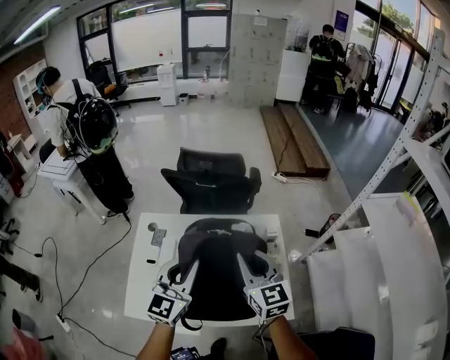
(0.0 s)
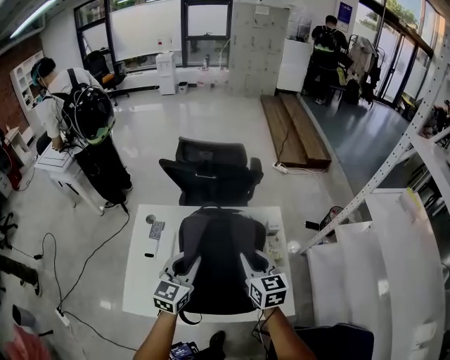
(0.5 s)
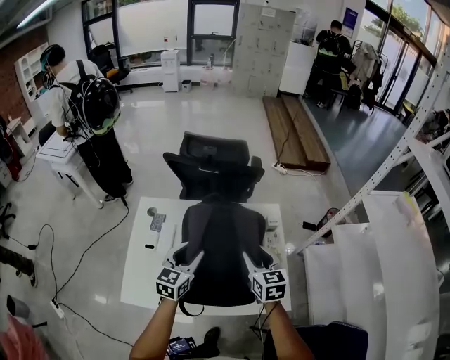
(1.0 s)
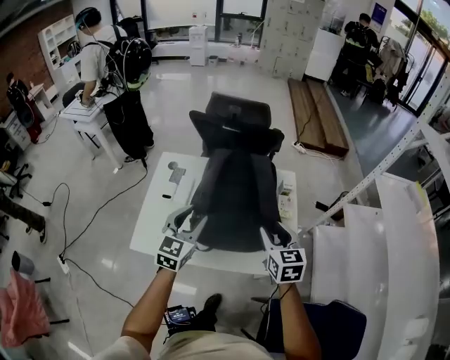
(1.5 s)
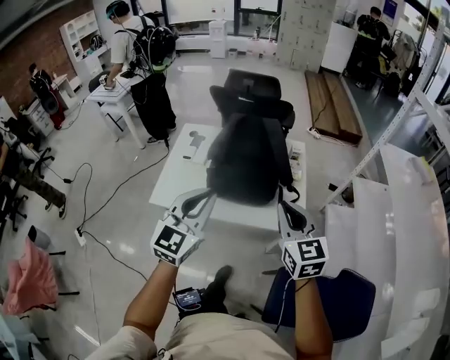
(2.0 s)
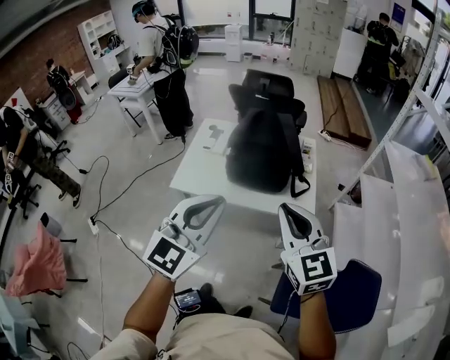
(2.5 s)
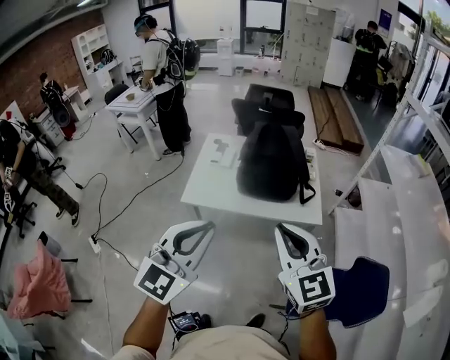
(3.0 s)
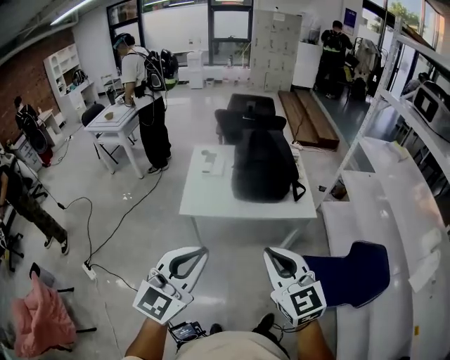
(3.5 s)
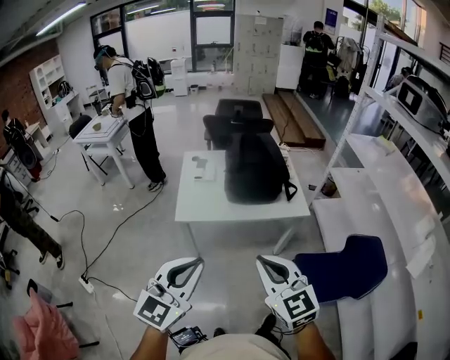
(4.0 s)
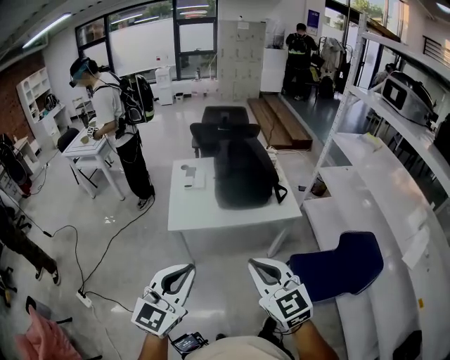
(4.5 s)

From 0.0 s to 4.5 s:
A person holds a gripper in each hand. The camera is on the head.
From 0.0 s to 2.0 s: The grippers both shift backward by some 30 cm. The left gripper opens, then closes once more, while the right gripper opens, then closes once more.
From 2.0 s to 4.5 s: Both grippers are carried backward and to the left, some 40 cm.

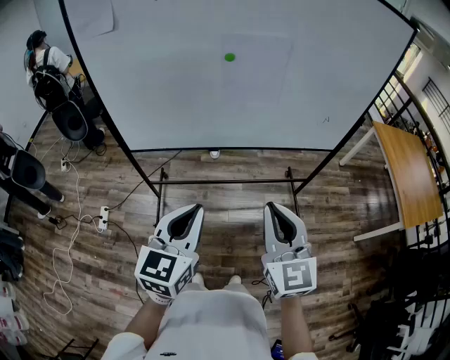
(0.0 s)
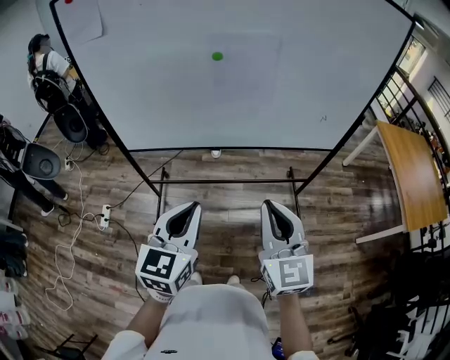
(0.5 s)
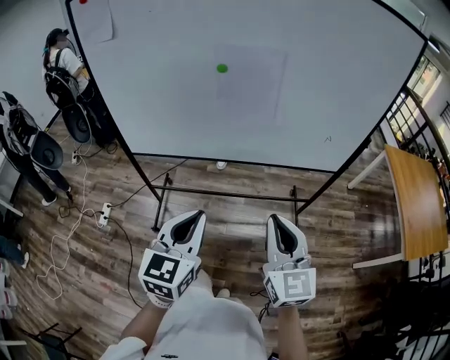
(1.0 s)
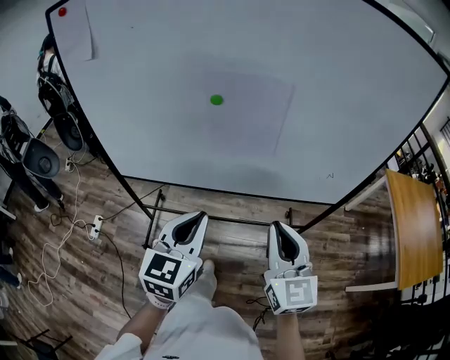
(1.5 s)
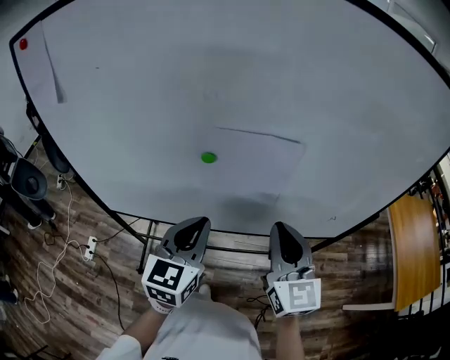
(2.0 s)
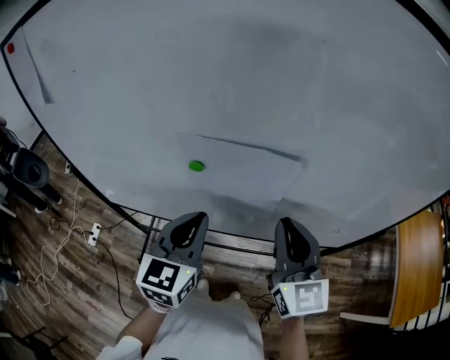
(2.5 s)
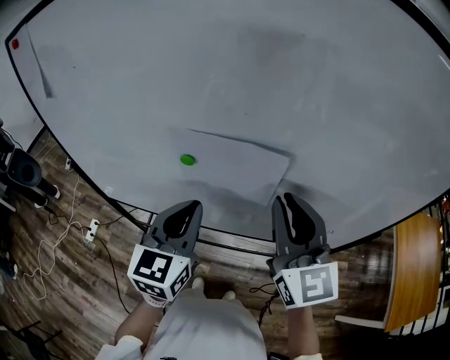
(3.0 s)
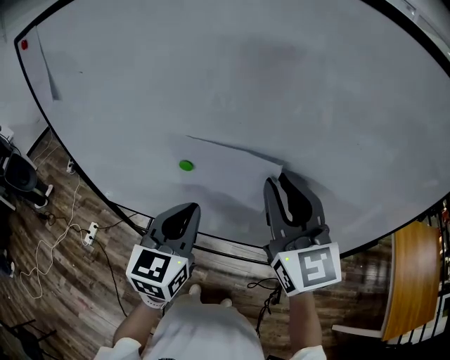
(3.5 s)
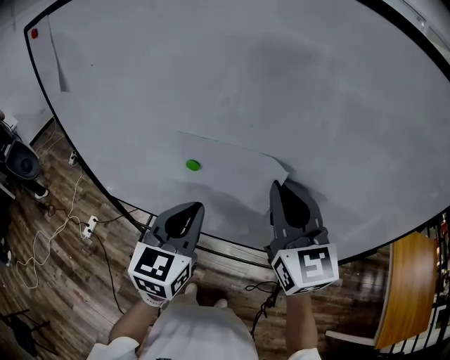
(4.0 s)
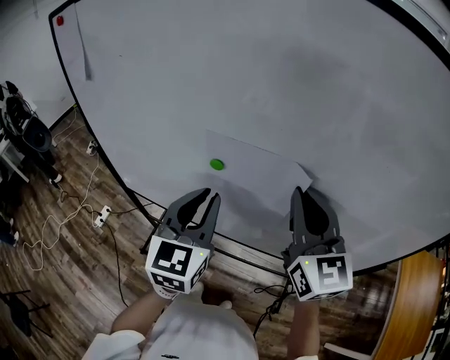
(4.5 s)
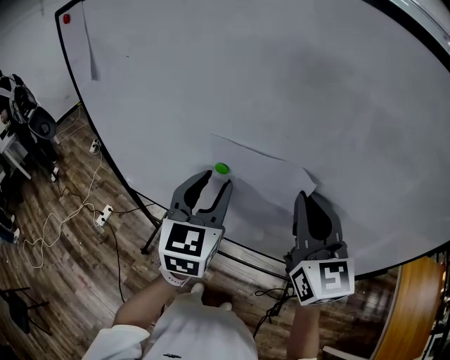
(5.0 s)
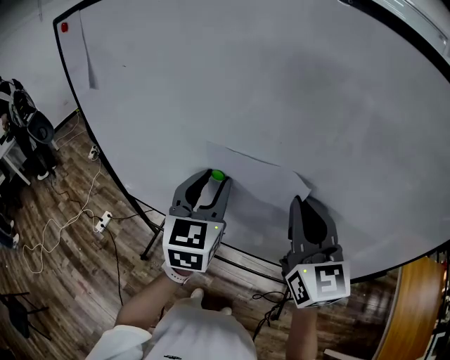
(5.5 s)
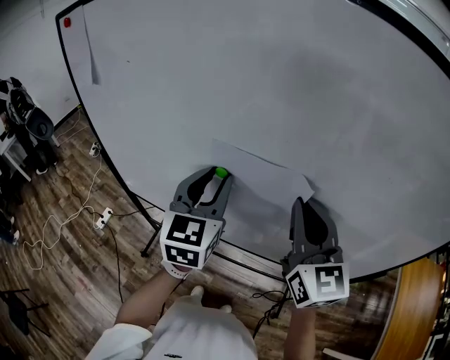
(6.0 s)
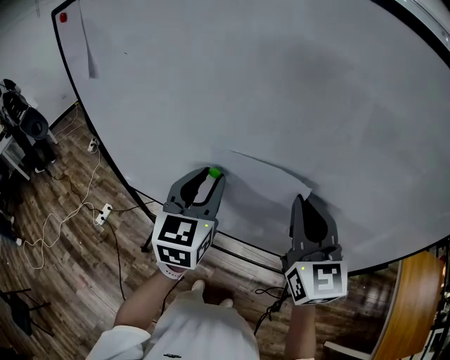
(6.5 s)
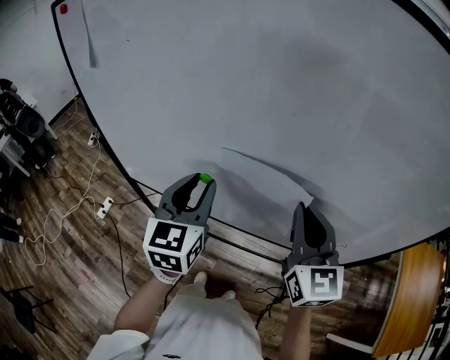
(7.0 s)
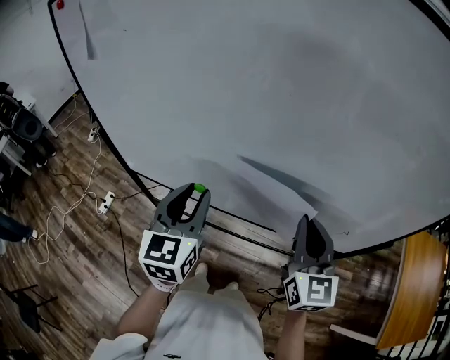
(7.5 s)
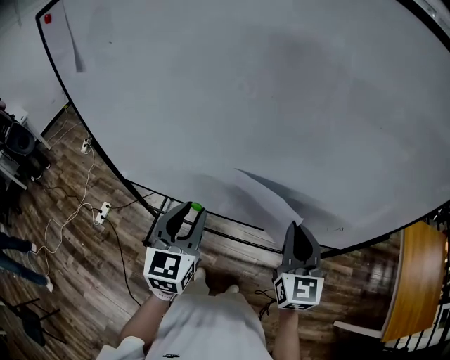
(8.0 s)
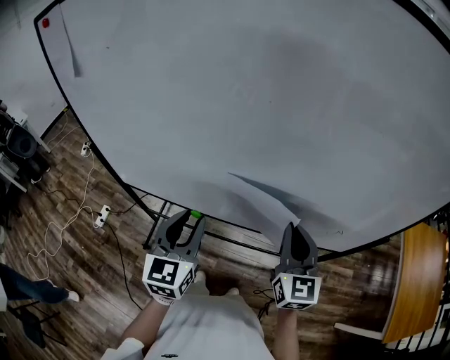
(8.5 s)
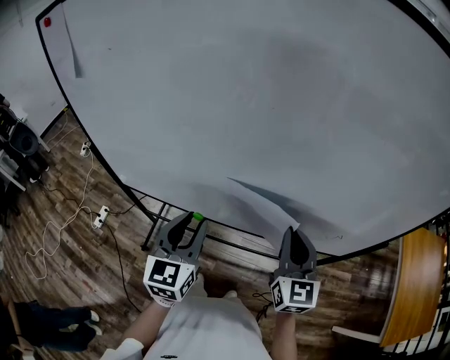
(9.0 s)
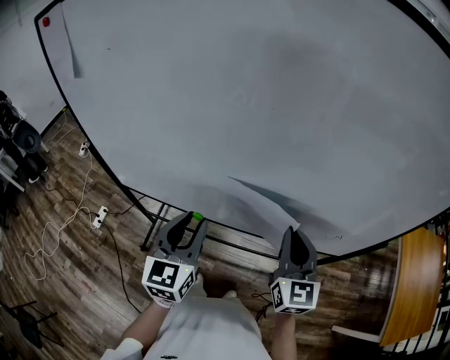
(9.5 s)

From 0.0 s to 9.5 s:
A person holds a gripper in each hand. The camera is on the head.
From 0.0 s to 2.0 s: The grippers both shift forward by approximately 30 cm.
From 2.0 s to 4.0 s: The left gripper changes place by some 5 cm. The right gripper moves upward and forward, approximately 15 cm.
From 4.0 s to 5.5 s: The left gripper travels forward by some 5 cm, and opens up.
From 5.5 s to 7.5 s: The right gripper goes about 15 cm downward and backward. Meanwhile the left gripper goes approximately 10 cm backward and downward.
From 7.5 s to 9.5 s: The grippers stay close to where they were, moving slightly.

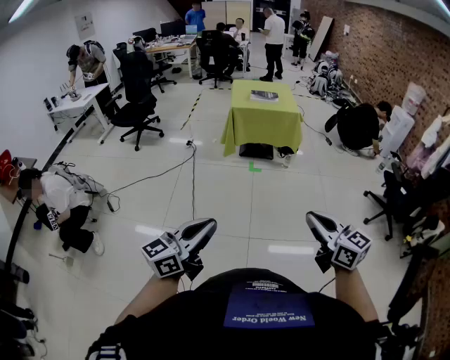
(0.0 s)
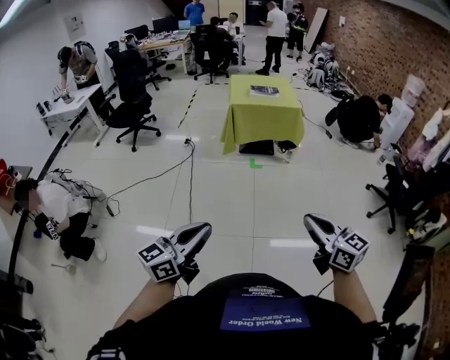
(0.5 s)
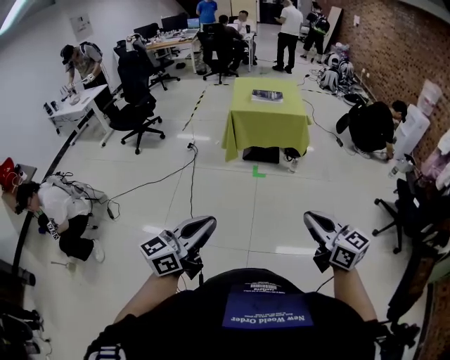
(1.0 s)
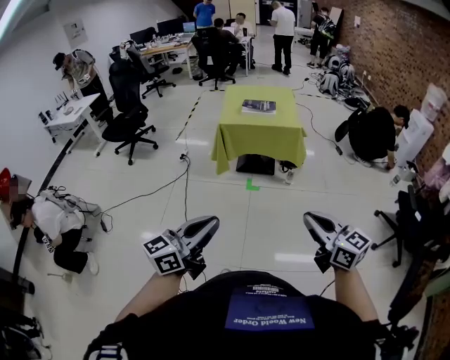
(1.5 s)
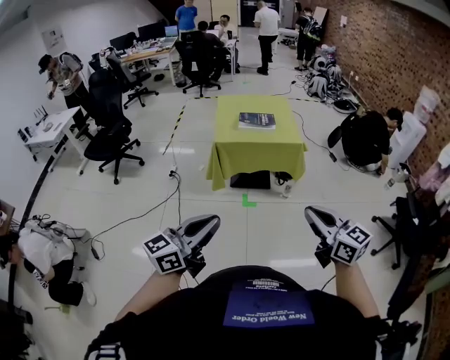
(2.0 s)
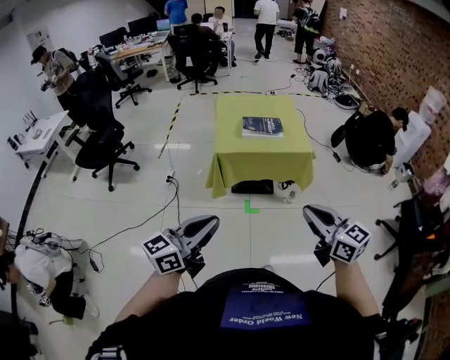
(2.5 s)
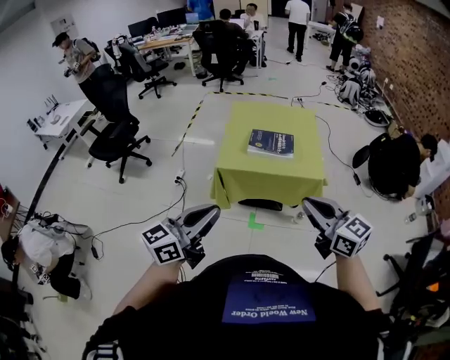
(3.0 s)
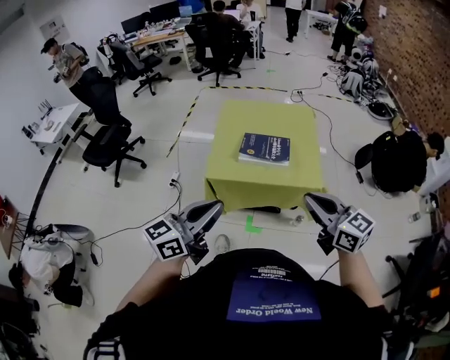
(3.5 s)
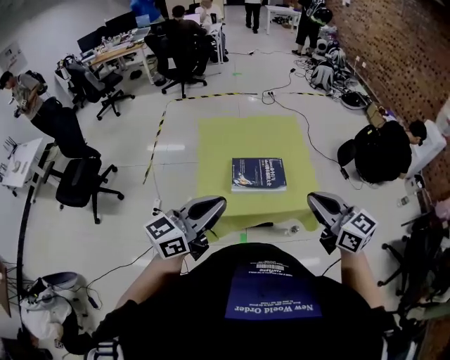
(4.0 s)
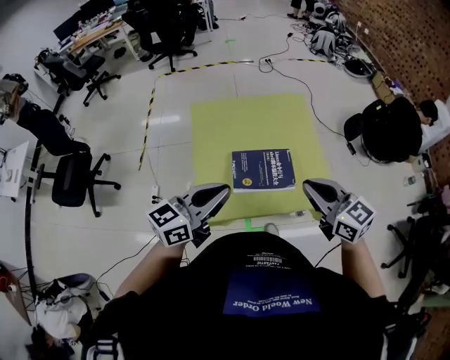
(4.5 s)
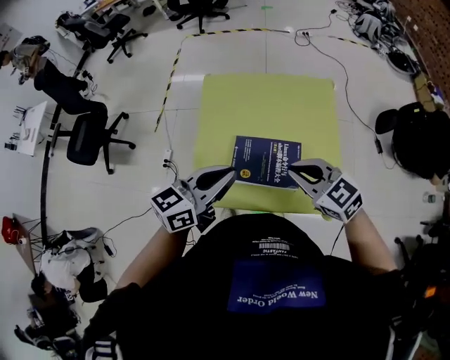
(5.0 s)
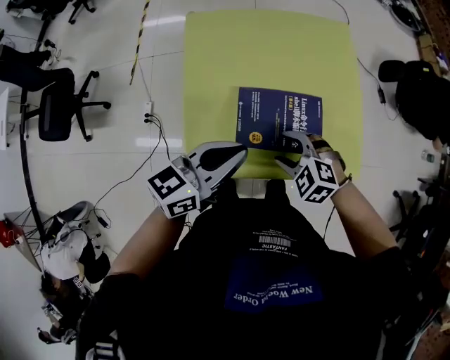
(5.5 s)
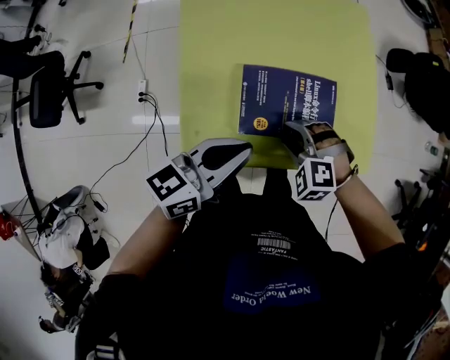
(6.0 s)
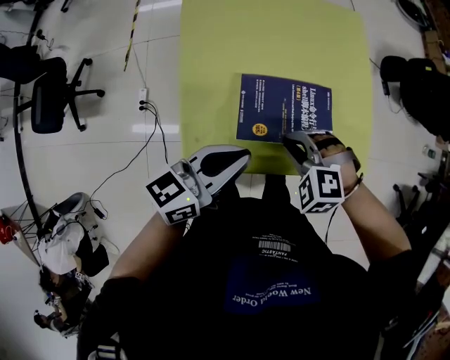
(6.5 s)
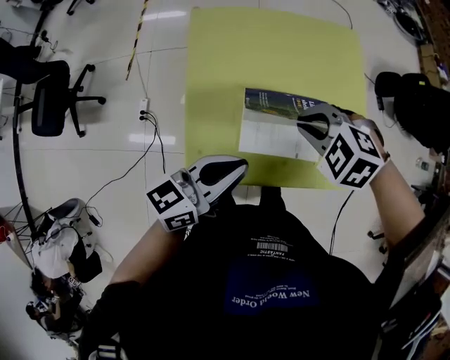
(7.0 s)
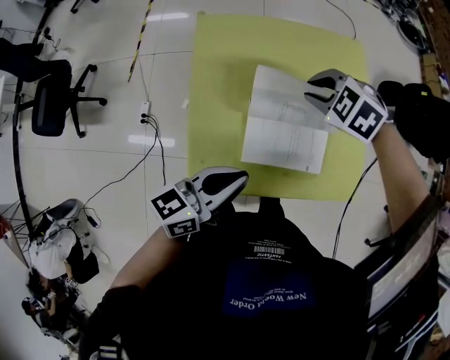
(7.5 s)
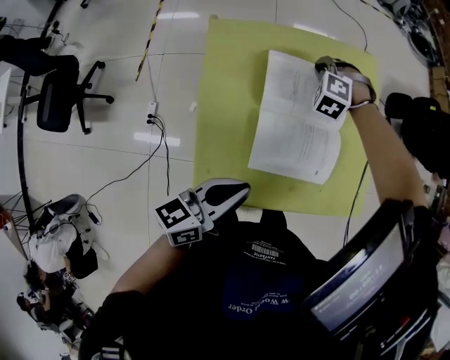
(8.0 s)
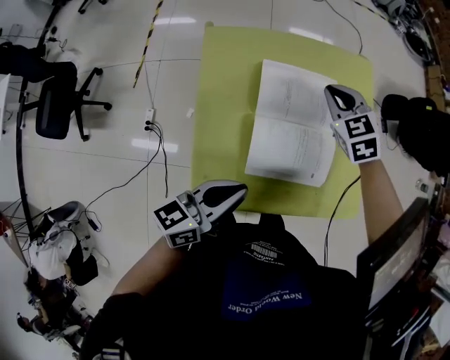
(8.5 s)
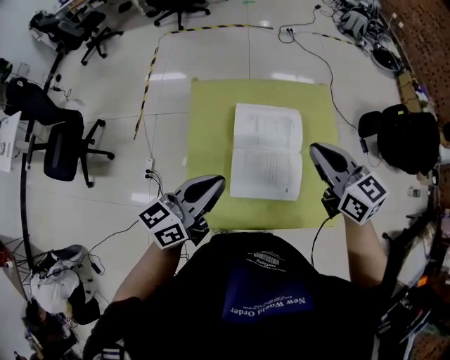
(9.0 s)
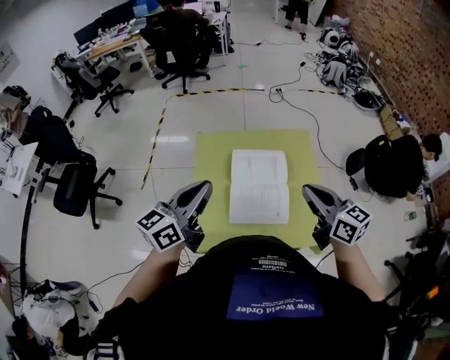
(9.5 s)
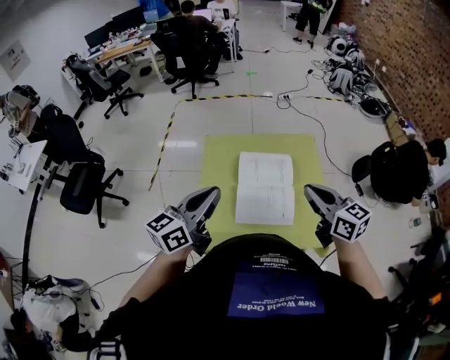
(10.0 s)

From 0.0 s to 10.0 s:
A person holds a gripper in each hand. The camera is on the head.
From 0.0 s to 2.0 s: The pair of grippers is taken forward, some 50 cm.
From 2.0 s to 4.0 s: Both grippers are carried forward, some 60 cm.
From 4.0 s to 6.0 s: The two grippers go about 30 cm downward and forward. The left gripper rotates about 30 degrees; the right gripper tilts its fingers roughly 50 degrees downward, and opens.
From 6.0 s to 8.0 s: The right gripper moves approximately 15 cm upward and comes back, turns by roughly 20 degrees, and closes.
From 8.0 s to 10.0 s: The right gripper changes place by approximately 40 cm, and tilts its fingers approximately 50 degrees upward. Meanwhile the left gripper moves upward, roughly 20 cm, and turns by some 30 degrees.

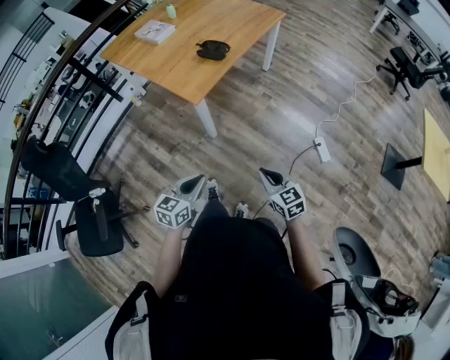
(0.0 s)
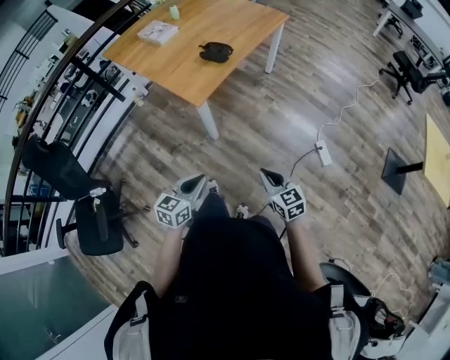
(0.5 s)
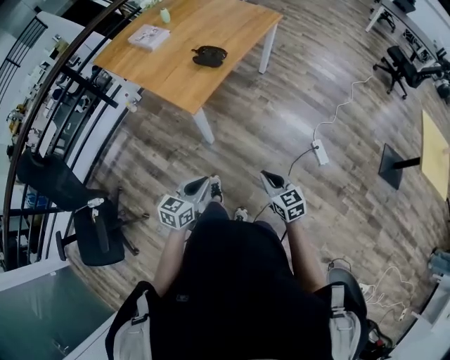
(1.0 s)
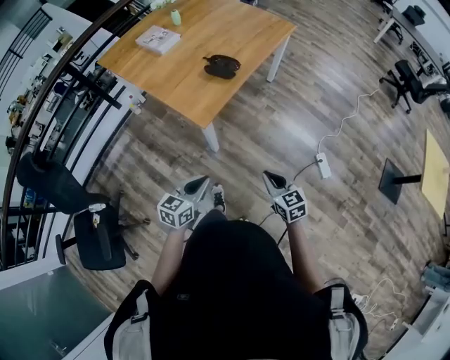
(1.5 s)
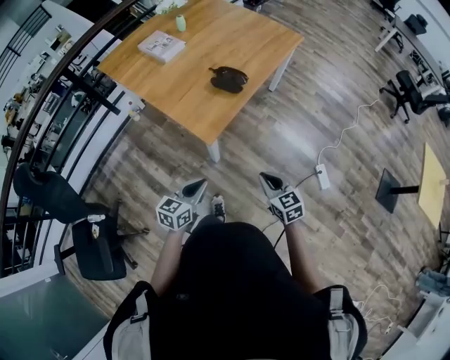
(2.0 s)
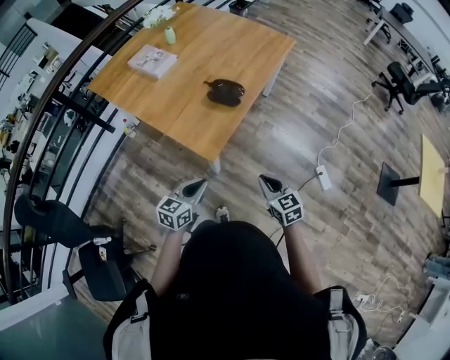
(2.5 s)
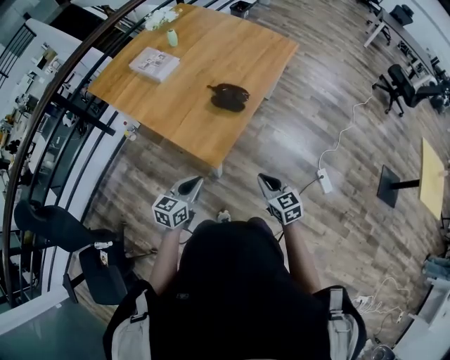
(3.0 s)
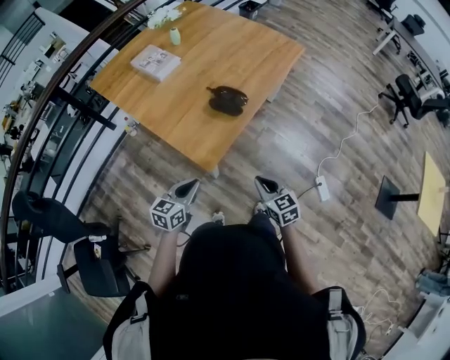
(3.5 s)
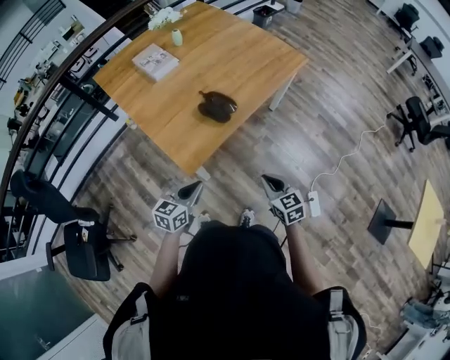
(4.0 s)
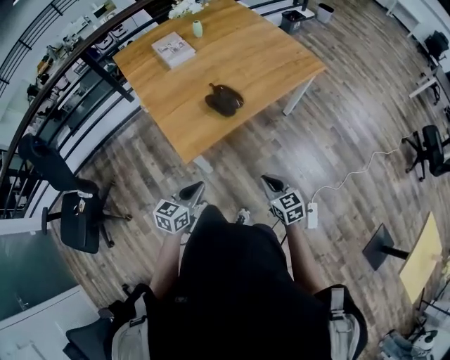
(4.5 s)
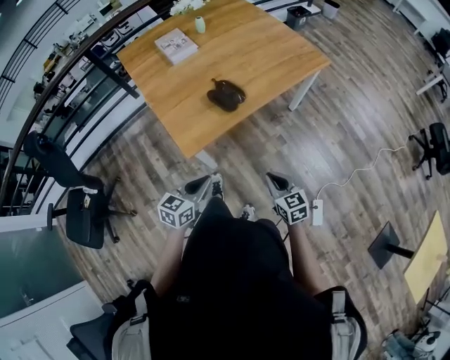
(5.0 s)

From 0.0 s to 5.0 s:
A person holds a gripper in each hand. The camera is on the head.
From 0.0 s to 2.5 s: The left gripper moves forward, roughly 30 cm. The right gripper moves forward and to the left, roughly 30 cm.
From 2.5 s to 5.0 s: The right gripper shifts some 20 cm to the right and forward; the left gripper shifts roughly 20 cm to the right, and turns by roughly 20 degrees.
